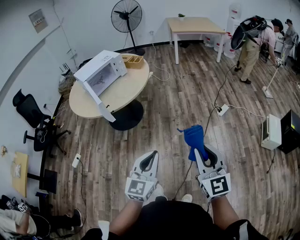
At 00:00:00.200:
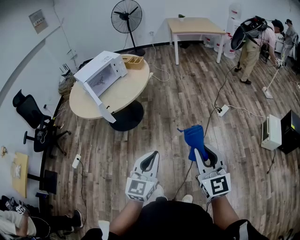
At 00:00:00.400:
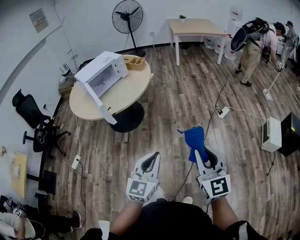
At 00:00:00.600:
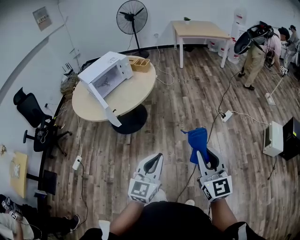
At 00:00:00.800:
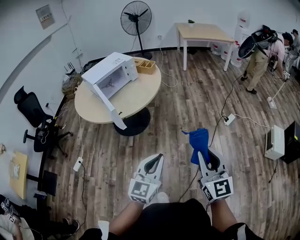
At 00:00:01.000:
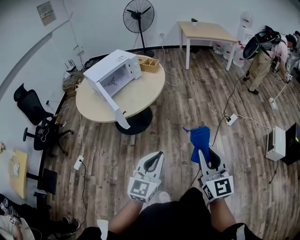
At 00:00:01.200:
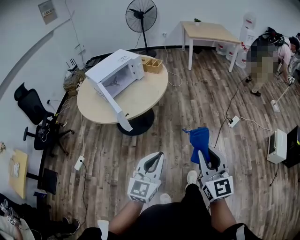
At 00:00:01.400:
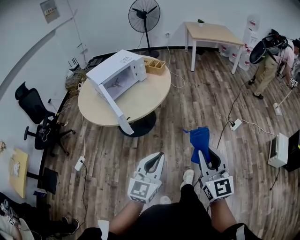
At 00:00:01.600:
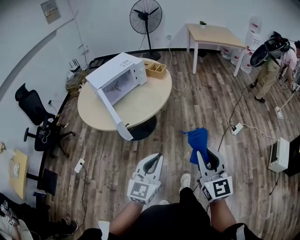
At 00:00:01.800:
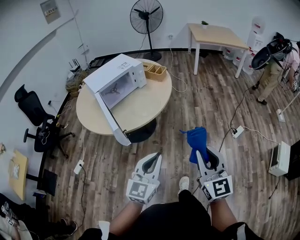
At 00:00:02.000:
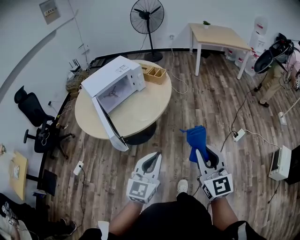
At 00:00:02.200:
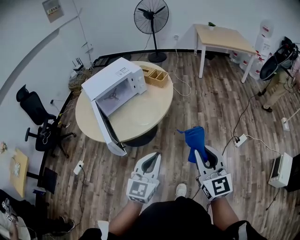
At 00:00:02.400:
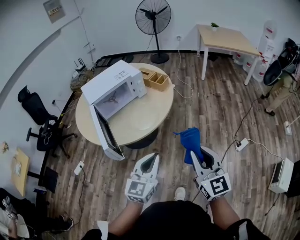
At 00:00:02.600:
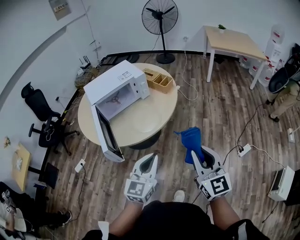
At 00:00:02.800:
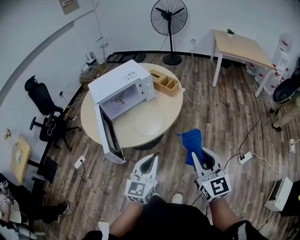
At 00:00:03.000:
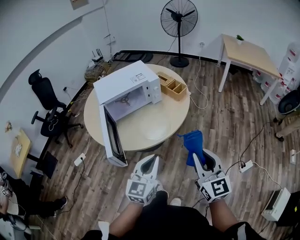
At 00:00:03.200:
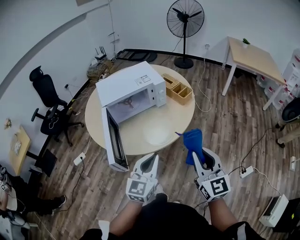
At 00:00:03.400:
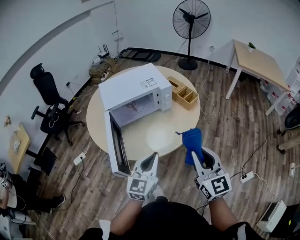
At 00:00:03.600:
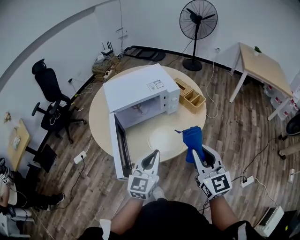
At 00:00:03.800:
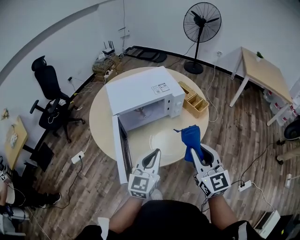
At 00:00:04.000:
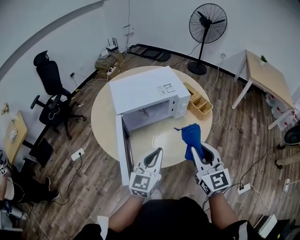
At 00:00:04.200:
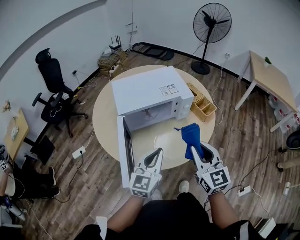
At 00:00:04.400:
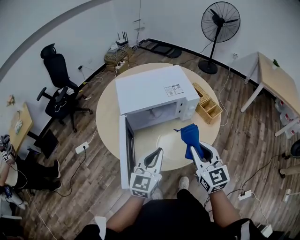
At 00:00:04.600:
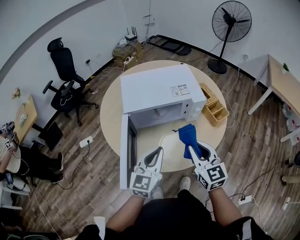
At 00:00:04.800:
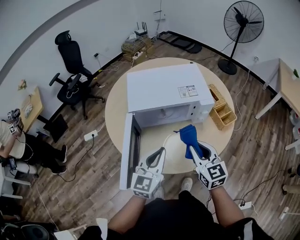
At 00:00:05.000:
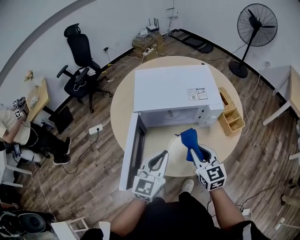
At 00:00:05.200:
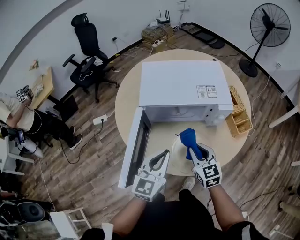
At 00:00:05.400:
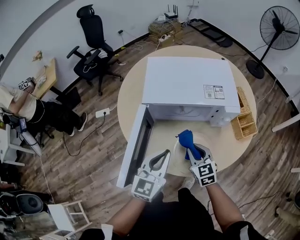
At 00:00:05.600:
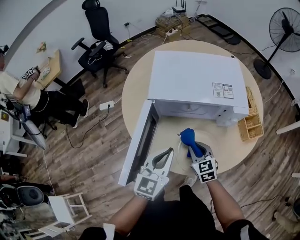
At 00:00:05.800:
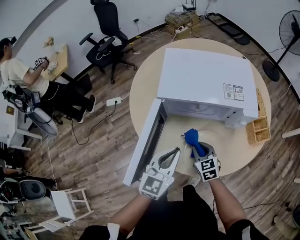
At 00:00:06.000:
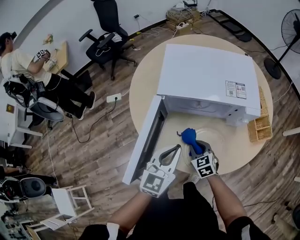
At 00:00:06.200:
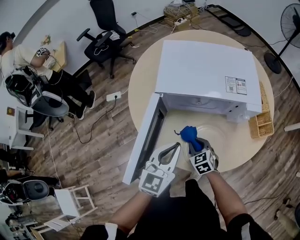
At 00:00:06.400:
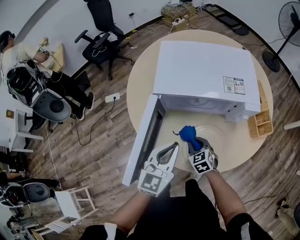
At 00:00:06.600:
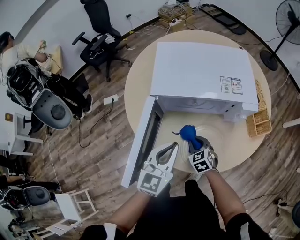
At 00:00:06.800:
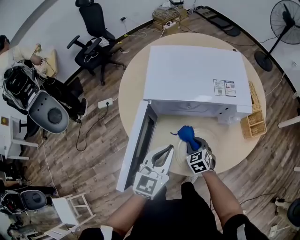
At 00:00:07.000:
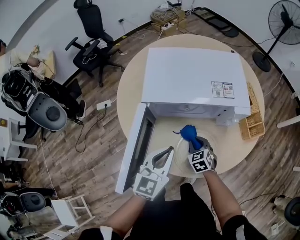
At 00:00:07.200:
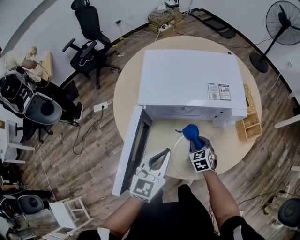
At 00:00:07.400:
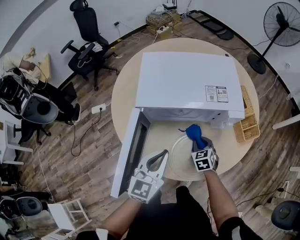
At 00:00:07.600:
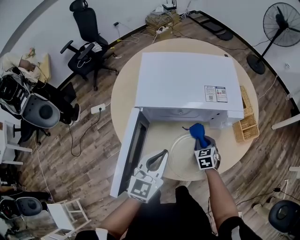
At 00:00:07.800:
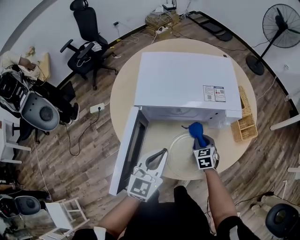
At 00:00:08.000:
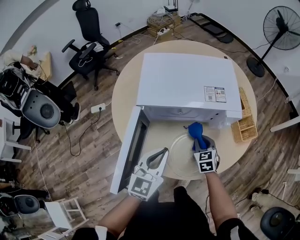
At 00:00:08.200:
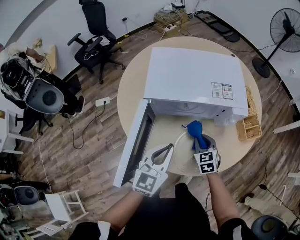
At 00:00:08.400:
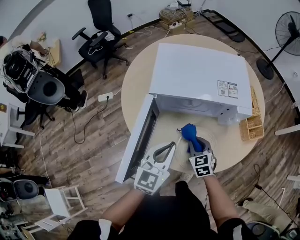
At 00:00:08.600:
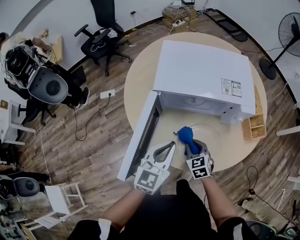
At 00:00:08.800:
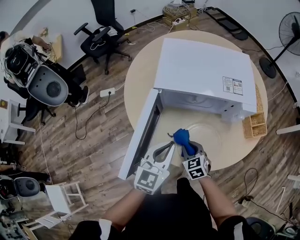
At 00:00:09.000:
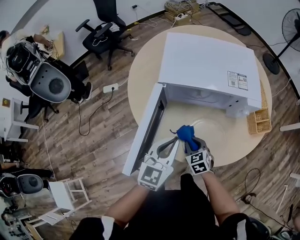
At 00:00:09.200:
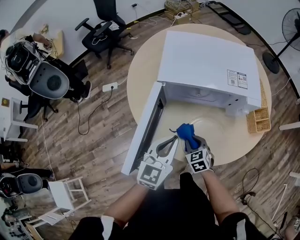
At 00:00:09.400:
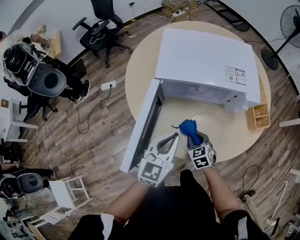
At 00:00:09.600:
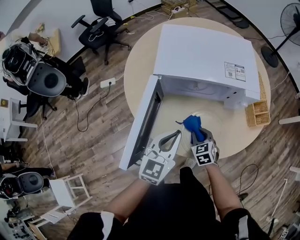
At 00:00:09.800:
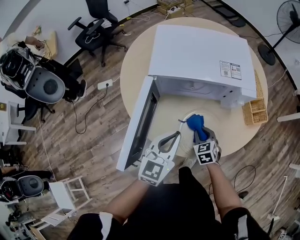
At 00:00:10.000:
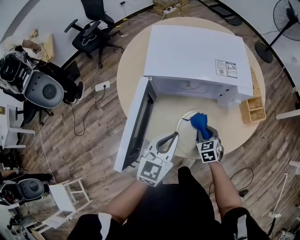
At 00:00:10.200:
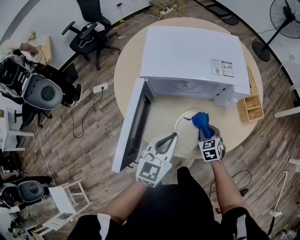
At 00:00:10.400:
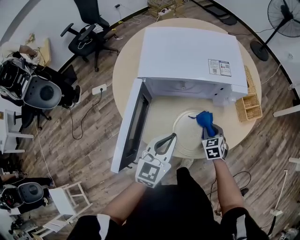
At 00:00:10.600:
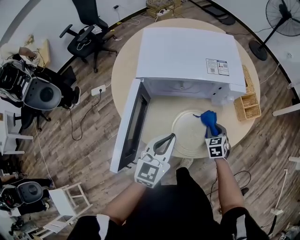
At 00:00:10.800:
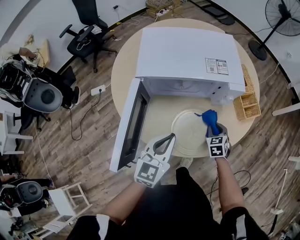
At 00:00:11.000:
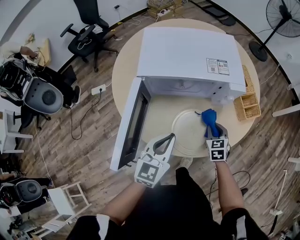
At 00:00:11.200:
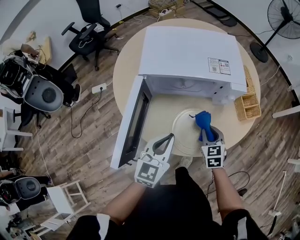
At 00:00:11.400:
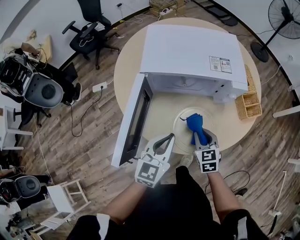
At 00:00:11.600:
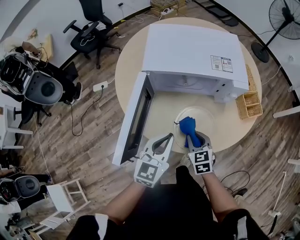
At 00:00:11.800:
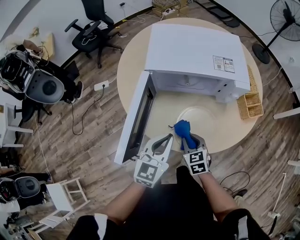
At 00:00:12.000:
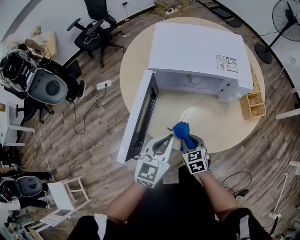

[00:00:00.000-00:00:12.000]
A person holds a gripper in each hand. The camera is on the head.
00:00:00.000 to 00:00:01.600: Both grippers move forward and to the left, some 20 cm.
00:00:01.600 to 00:00:03.000: Both grippers travel together forward, approximately 30 cm.
00:00:03.000 to 00:00:04.400: The two grippers go roughly 25 cm forward and to the left.
00:00:04.400 to 00:00:06.000: The right gripper moves downward, about 30 cm, and angles its fingers downward, by roughly 30 degrees. The left gripper shifts some 5 cm downward, and turns by some 20 degrees.
00:00:06.000 to 00:00:07.600: The right gripper moves to the right and forward, about 15 cm, and swivels roughly 20 degrees.
00:00:07.600 to 00:00:09.000: The right gripper goes approximately 15 cm to the left and backward.
00:00:09.000 to 00:00:10.400: The right gripper is displaced to the right by approximately 15 cm.
00:00:10.400 to 00:00:12.000: The right gripper shifts approximately 15 cm to the left and backward. The left gripper shifts by about 5 cm.

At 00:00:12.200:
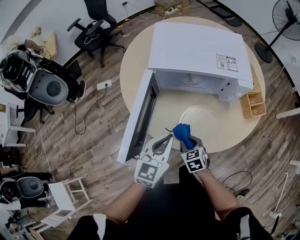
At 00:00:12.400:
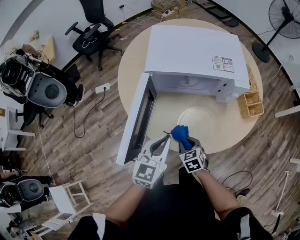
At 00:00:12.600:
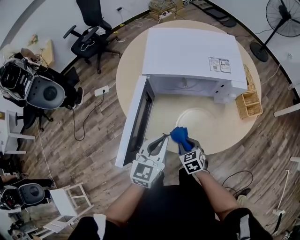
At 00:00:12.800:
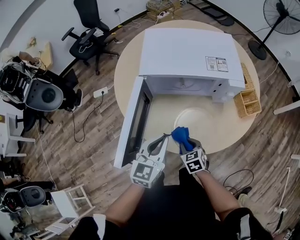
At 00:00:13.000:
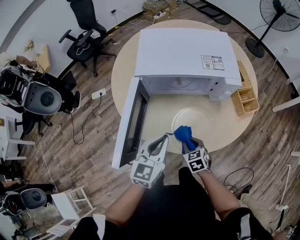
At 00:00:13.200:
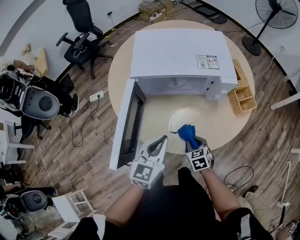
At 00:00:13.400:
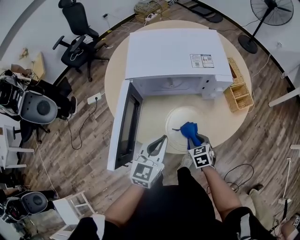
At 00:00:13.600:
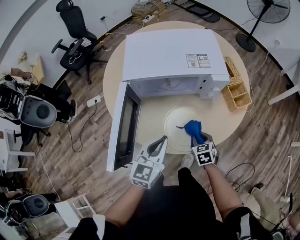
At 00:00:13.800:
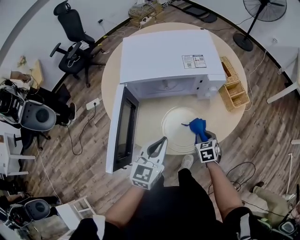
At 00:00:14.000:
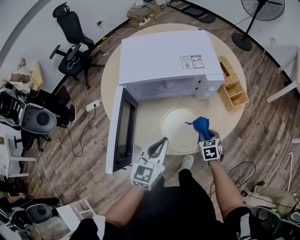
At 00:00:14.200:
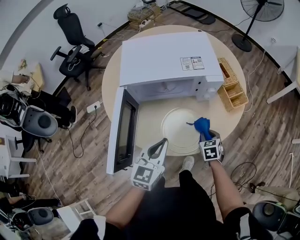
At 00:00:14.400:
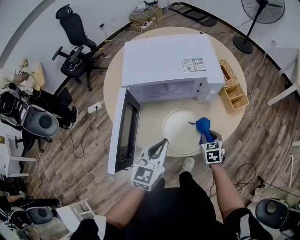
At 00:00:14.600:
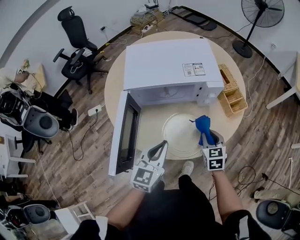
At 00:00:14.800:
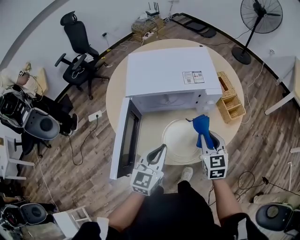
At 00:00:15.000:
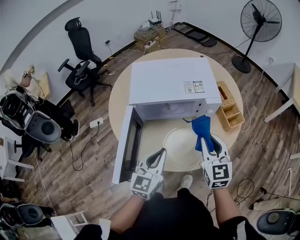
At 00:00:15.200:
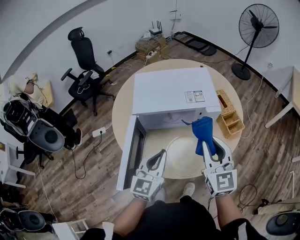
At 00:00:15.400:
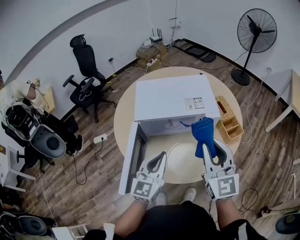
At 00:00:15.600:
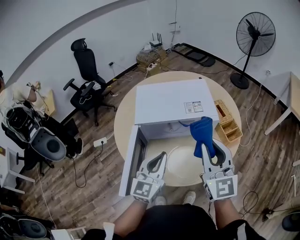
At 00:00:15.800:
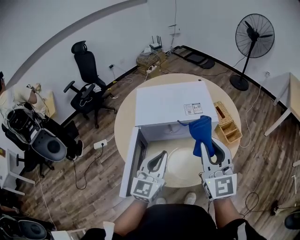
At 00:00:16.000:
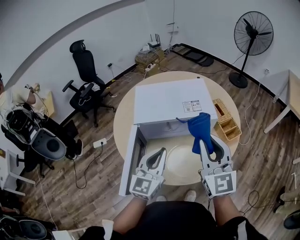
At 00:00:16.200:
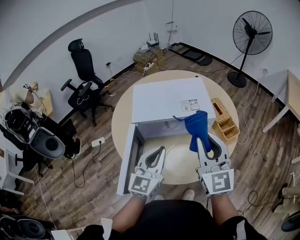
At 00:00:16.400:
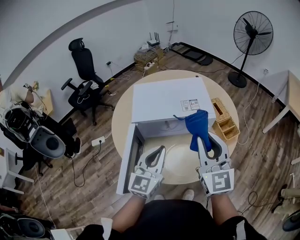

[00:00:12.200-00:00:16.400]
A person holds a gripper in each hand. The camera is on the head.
00:00:12.200 to 00:00:13.600: The right gripper shifts some 15 cm to the right.
00:00:13.600 to 00:00:15.000: The right gripper is displaced upward by roughly 25 cm, and points its fingers about 40 degrees further upward. The left gripper heads upward, covering roughly 5 cm.
00:00:15.000 to 00:00:16.400: The left gripper moves upward, some 10 cm. Meanwhile the right gripper moves upward, some 15 cm.

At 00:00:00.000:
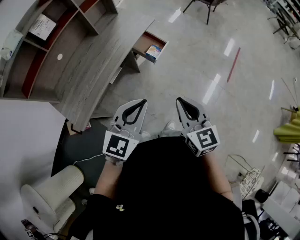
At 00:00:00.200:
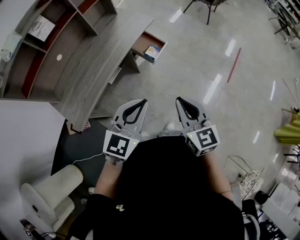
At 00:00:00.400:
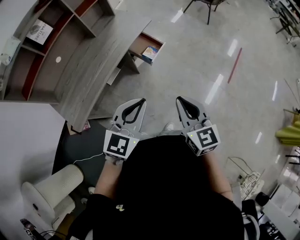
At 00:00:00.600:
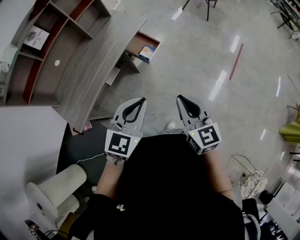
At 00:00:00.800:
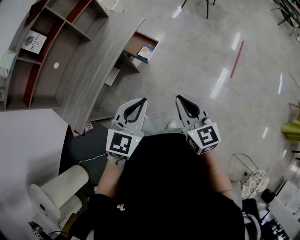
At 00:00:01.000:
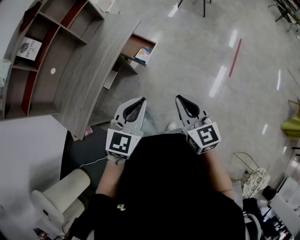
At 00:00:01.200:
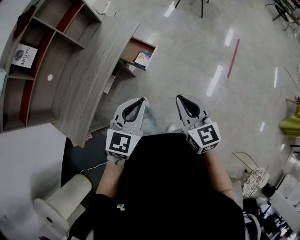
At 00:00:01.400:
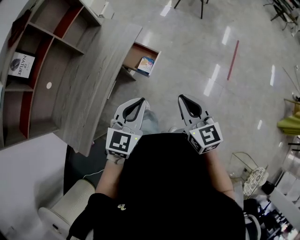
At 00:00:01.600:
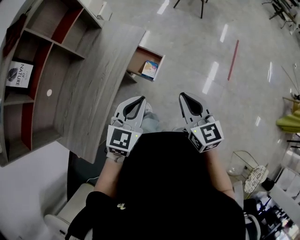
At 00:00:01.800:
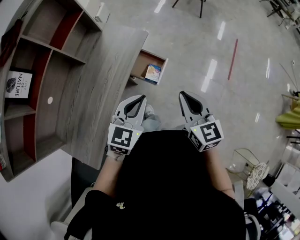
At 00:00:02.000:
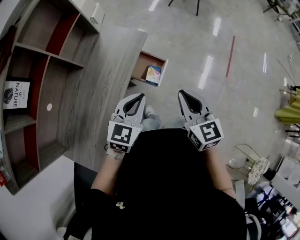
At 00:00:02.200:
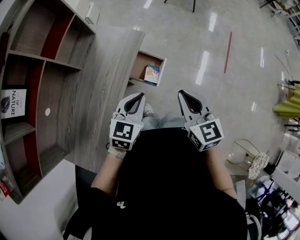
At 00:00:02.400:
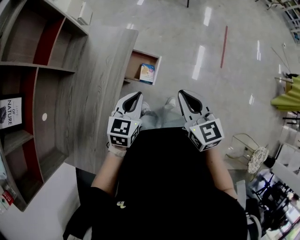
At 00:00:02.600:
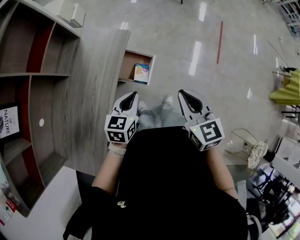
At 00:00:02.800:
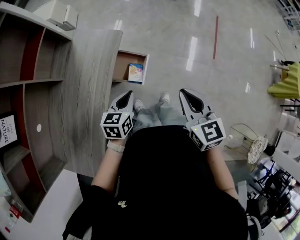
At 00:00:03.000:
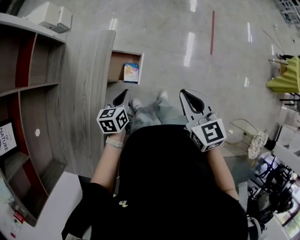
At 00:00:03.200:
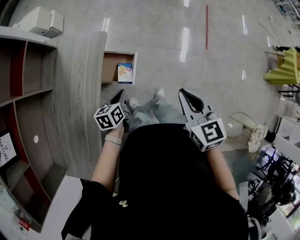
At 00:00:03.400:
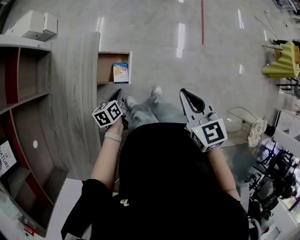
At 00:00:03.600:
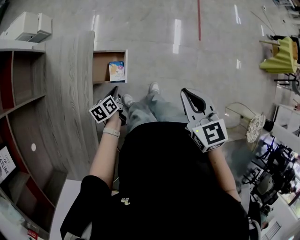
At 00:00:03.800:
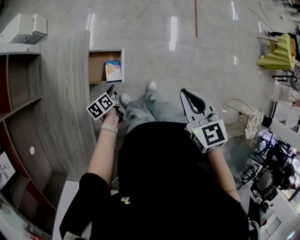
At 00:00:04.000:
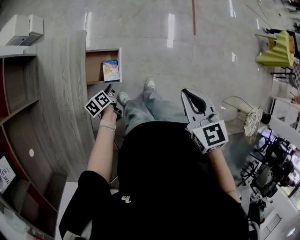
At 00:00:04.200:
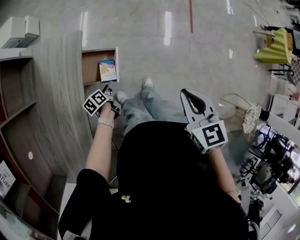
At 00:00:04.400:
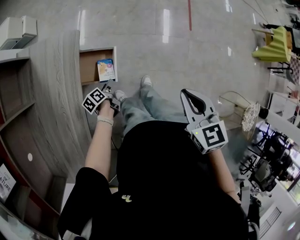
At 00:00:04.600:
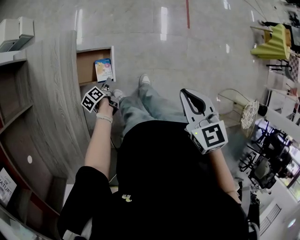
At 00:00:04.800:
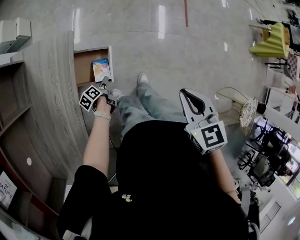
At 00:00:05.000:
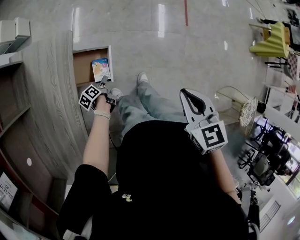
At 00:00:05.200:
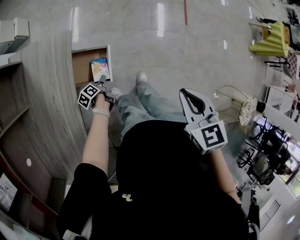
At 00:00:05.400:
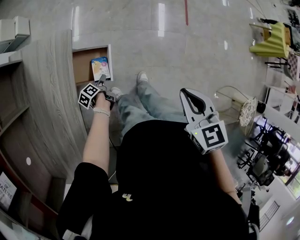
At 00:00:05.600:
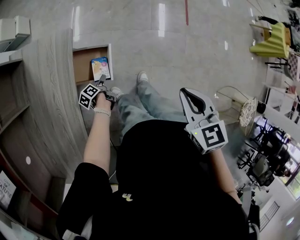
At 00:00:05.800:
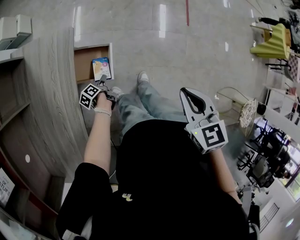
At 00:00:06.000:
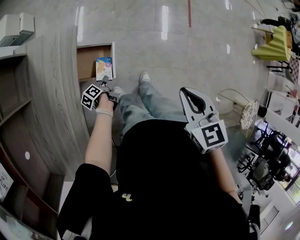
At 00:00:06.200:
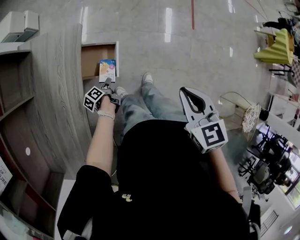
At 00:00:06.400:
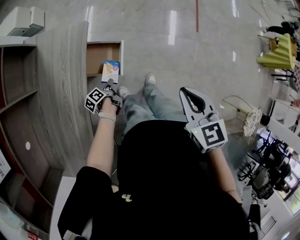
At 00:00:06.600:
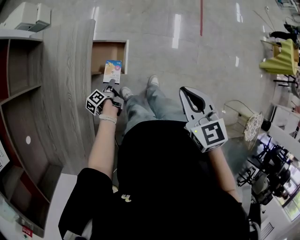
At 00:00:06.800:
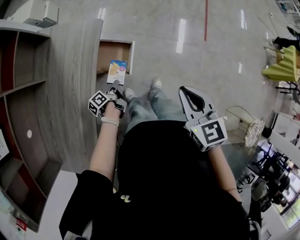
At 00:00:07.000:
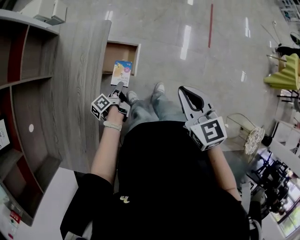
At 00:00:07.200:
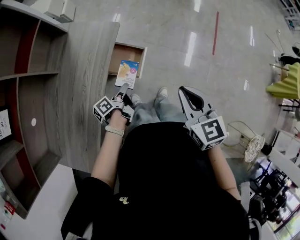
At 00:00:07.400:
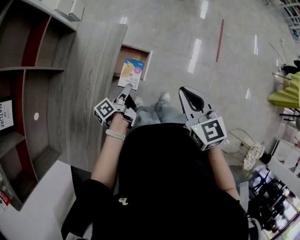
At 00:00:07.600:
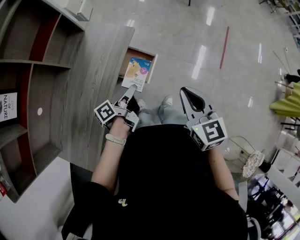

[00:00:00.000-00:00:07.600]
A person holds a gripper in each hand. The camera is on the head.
00:00:00.000 to 00:00:01.600: Both grippers travel together forward, approximately 25 cm.
00:00:01.600 to 00:00:03.000: The right gripper moves forward, about 10 cm, and goes to the left and returns, roughly 5 cm each way, while the left gripper travels downward and forward by about 20 cm, and swivels some 40 degrees.
00:00:03.000 to 00:00:04.600: The left gripper moves downward, some 25 cm, rolls counterclockwise, seen from behind, by some 40 degrees, and opens. Meanwhile the right gripper heads to the right, covering roughly 5 cm.
00:00:04.600 to 00:00:06.000: The left gripper closes.
00:00:06.000 to 00:00:07.600: The right gripper is displaced to the left and upward by approximately 10 cm, and swivels about 20 degrees. The left gripper is displaced upward by roughly 30 cm, and angles its fingers upward, by approximately 40 degrees.
